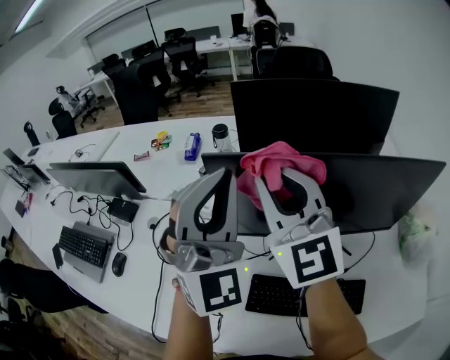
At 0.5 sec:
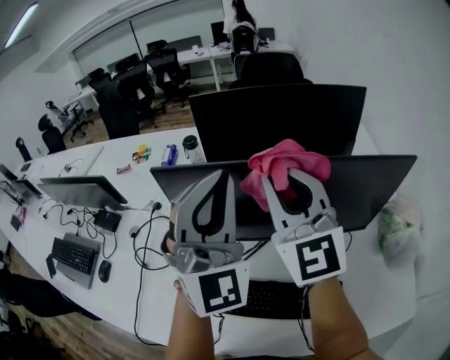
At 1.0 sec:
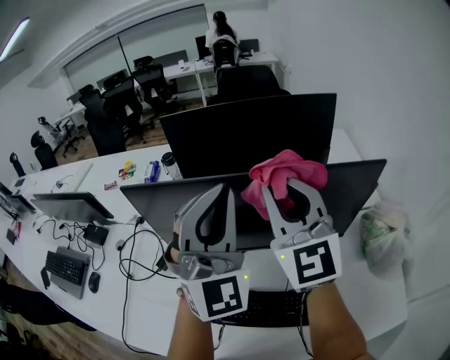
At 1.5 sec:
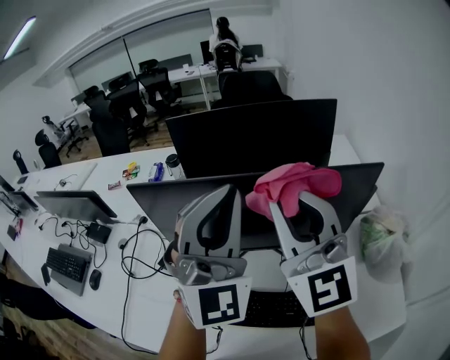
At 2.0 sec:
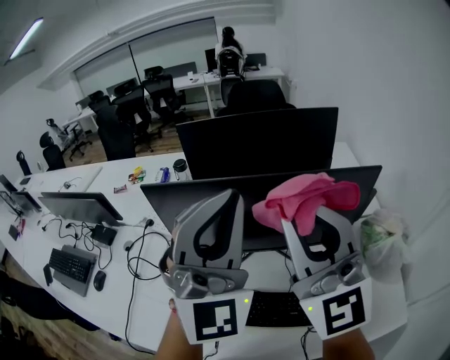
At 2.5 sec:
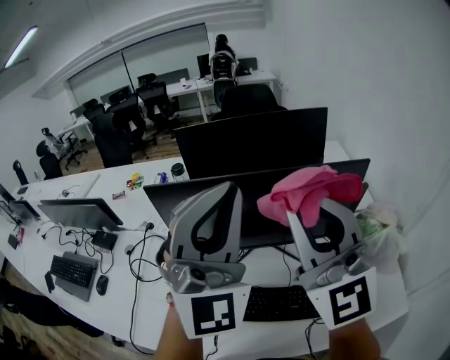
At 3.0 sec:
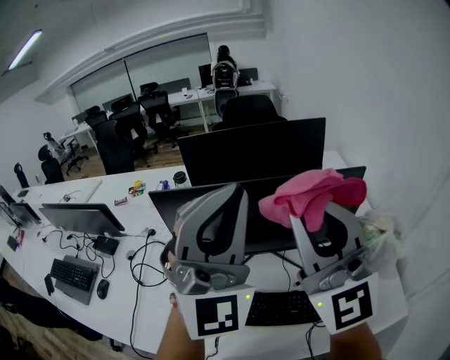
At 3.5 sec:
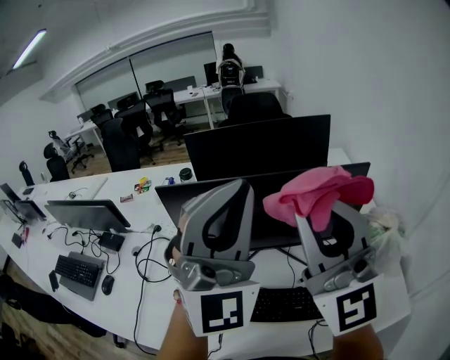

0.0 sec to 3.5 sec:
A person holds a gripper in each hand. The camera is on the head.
0.0 sec to 2.0 sec: The grippers both shift to the right, backward and upward by about 25 cm.
2.0 sec to 3.5 sec: The grippers both shift backward by some 5 cm.

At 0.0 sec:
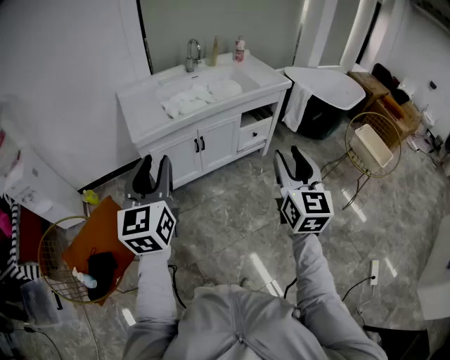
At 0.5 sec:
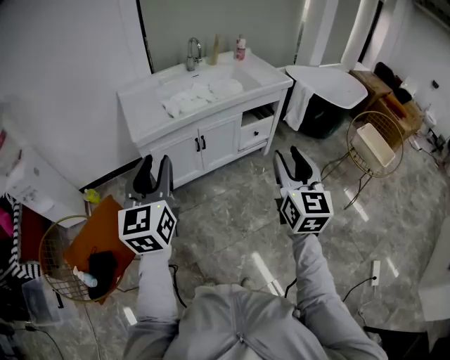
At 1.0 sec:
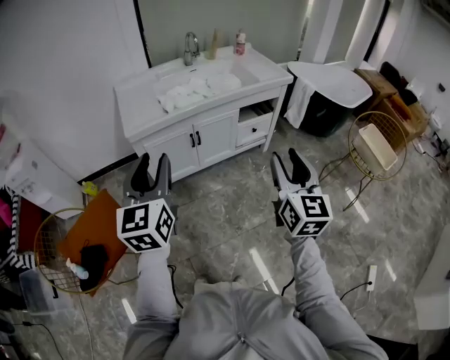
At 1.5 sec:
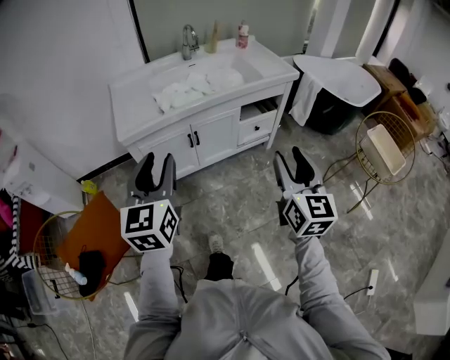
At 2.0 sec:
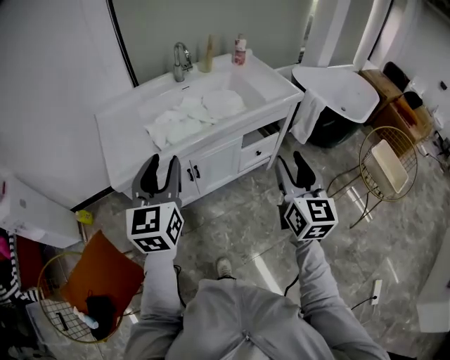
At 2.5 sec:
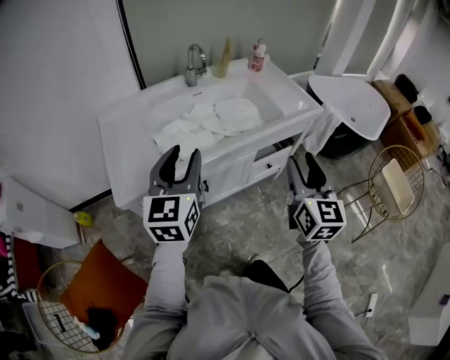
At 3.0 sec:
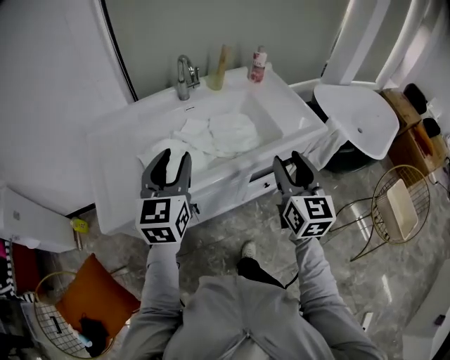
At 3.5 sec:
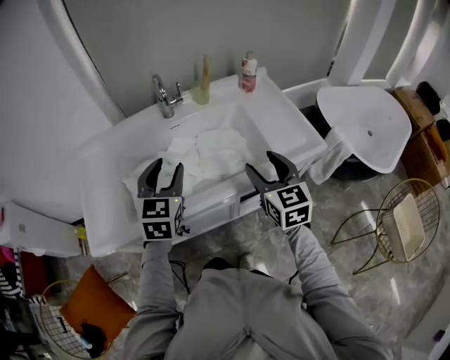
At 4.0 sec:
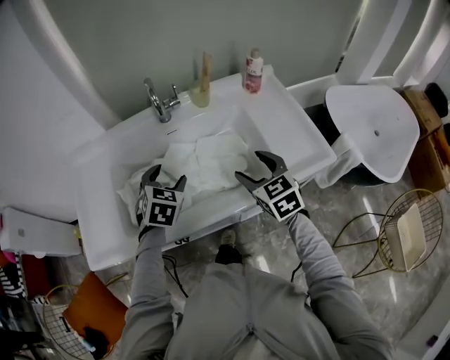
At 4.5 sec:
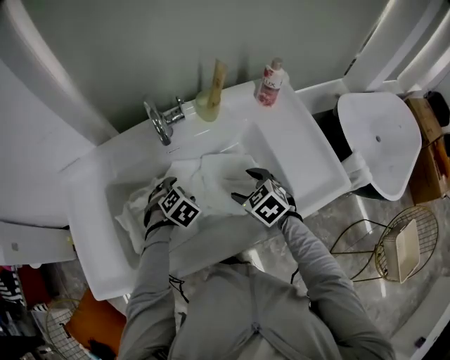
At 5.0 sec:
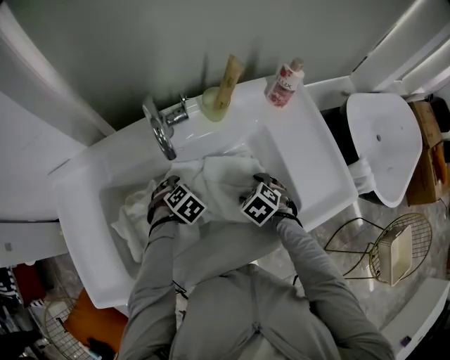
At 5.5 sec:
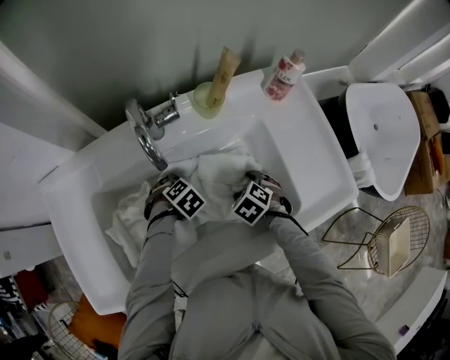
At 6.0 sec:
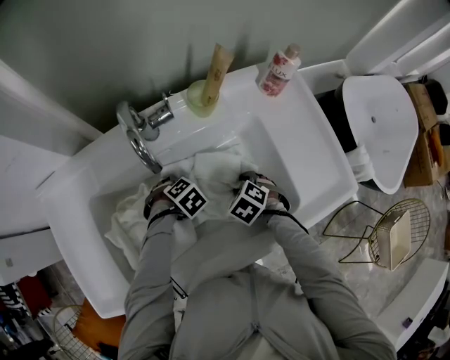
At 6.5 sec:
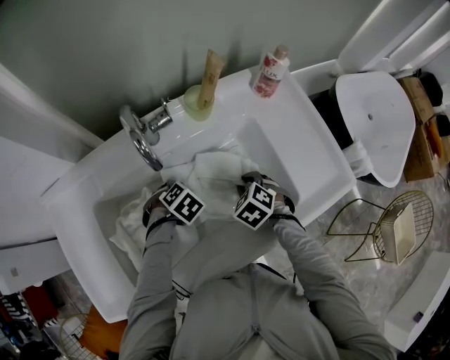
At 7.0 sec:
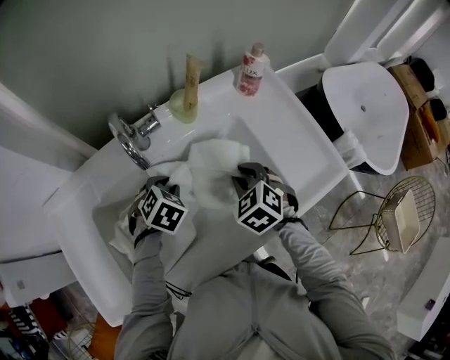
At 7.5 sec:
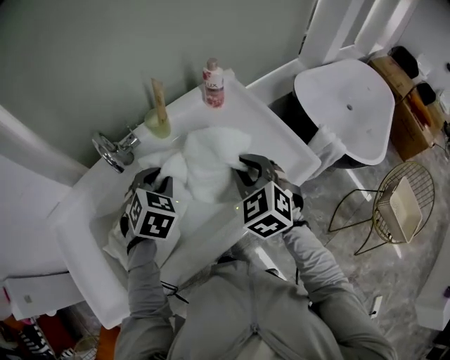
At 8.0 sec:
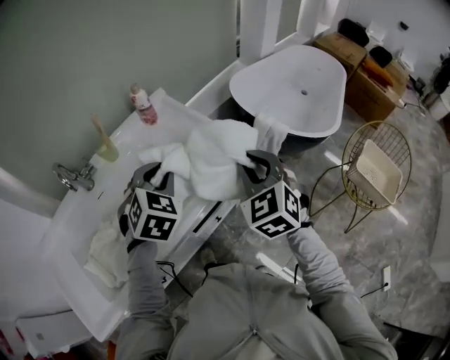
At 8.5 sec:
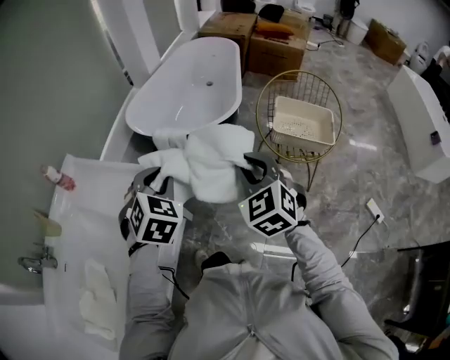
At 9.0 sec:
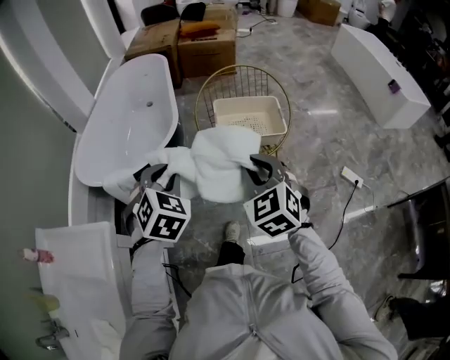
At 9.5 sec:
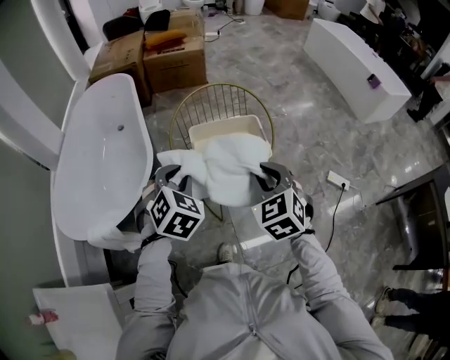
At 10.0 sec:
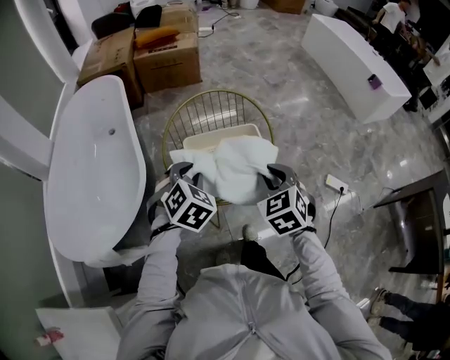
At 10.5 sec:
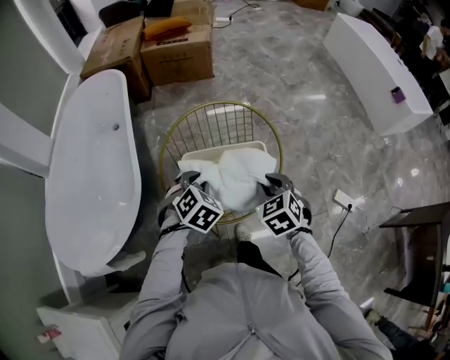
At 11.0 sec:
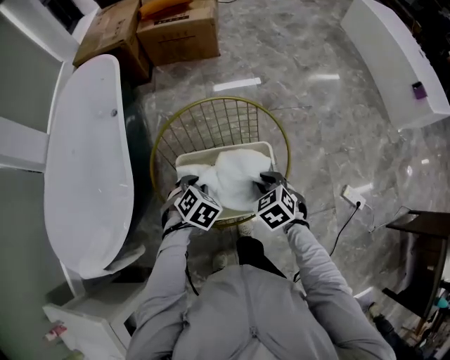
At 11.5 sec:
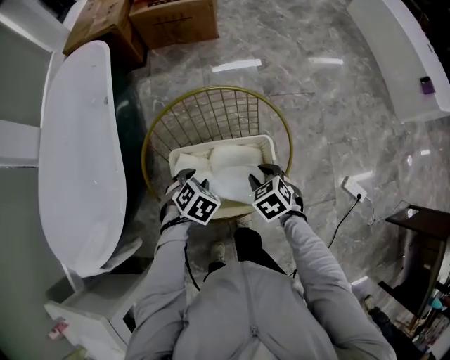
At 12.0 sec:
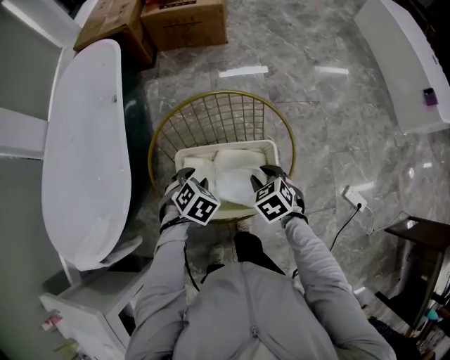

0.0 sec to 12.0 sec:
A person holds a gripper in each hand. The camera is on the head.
0.0 sec to 2.0 sec: The grippers both shift forward by roughly 25 cm.
2.0 sec to 4.0 sec: The two grippers travel together, forward, roughly 40 cm. The right gripper swivels roughly 40 degrees, and opens, while the left gripper heads downward, covering some 20 cm, tilts its fingers approximately 40 degrees downward, and opens up.
4.0 sec to 6.0 sec: The grippers both shift downward by about 20 cm. The left gripper tips its fingers downward by approximately 40 degrees. The right gripper angles its fingers downward, by roughly 50 degrees, and closes.
6.0 sec to 8.0 sec: The right gripper moves approximately 40 cm, and points its fingers about 50 degrees further upward; the left gripper is displaced upward by about 35 cm, and angles its fingers upward, by roughly 50 degrees.
8.0 sec to 10.0 sec: Both grippers are carried some 80 cm. The left gripper swivels approximately 70 degrees, while the right gripper rotates about 70 degrees.
10.0 sec to 12.0 sec: Both grippers move downward and forward, roughly 25 cm. The right gripper swivels about 30 degrees. The left gripper turns by approximately 30 degrees.

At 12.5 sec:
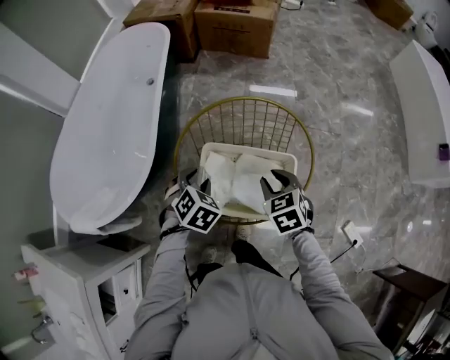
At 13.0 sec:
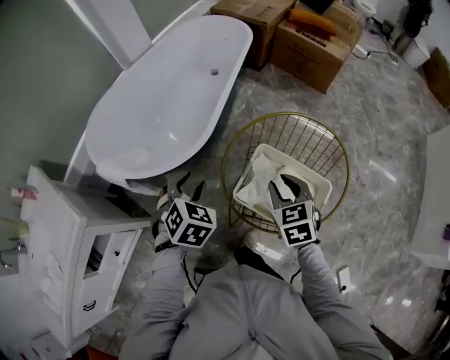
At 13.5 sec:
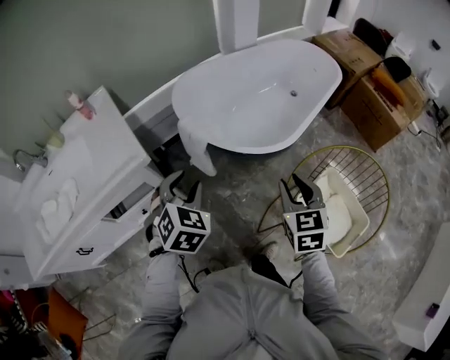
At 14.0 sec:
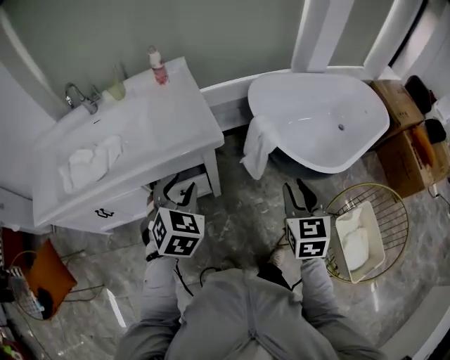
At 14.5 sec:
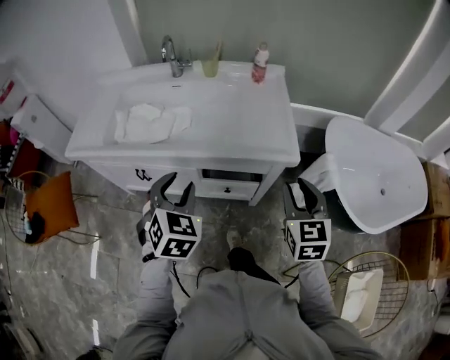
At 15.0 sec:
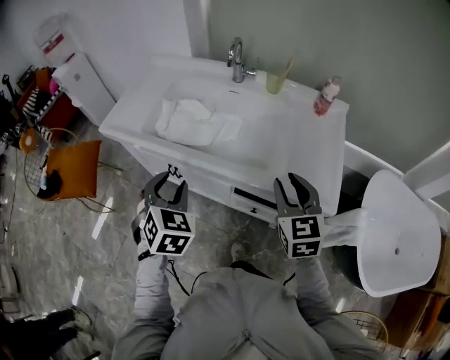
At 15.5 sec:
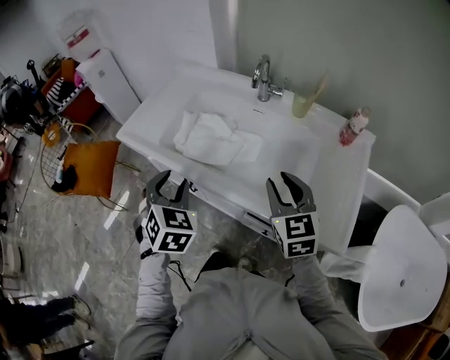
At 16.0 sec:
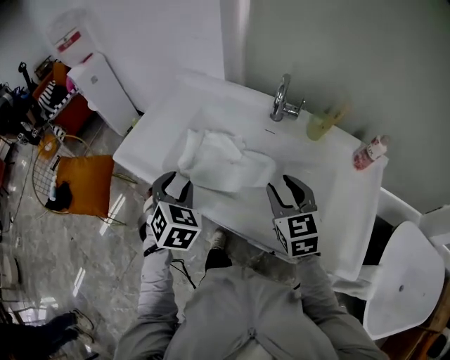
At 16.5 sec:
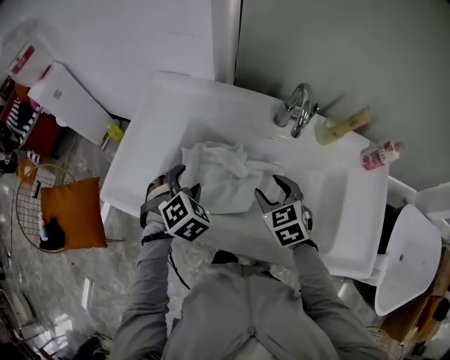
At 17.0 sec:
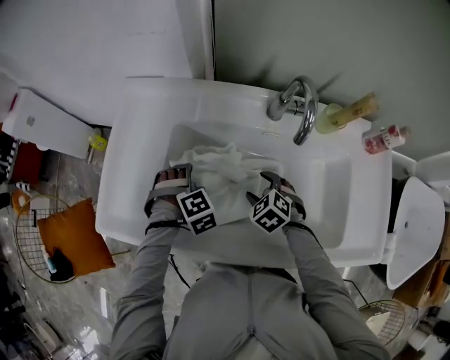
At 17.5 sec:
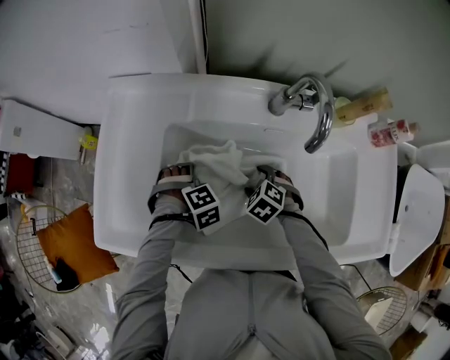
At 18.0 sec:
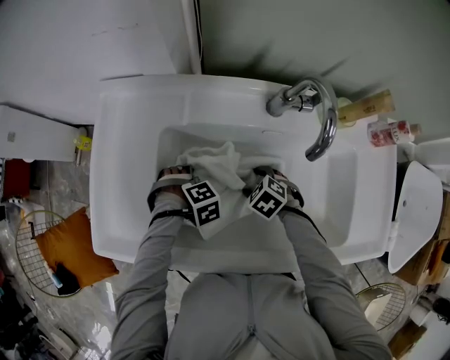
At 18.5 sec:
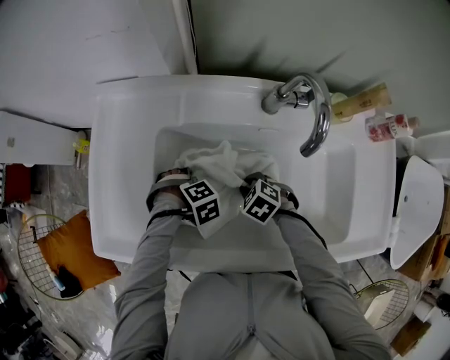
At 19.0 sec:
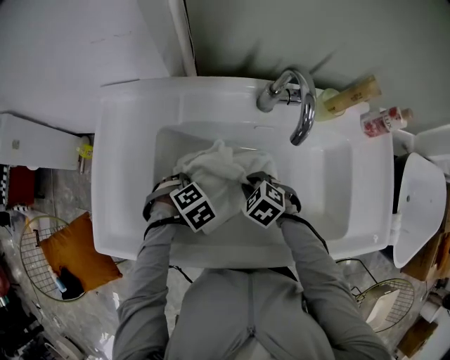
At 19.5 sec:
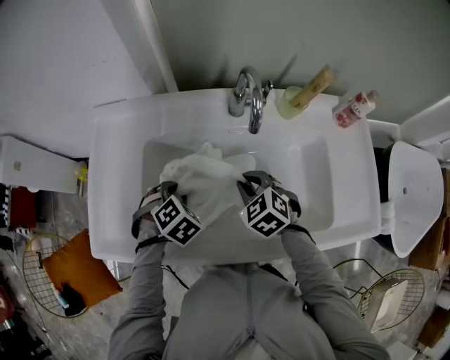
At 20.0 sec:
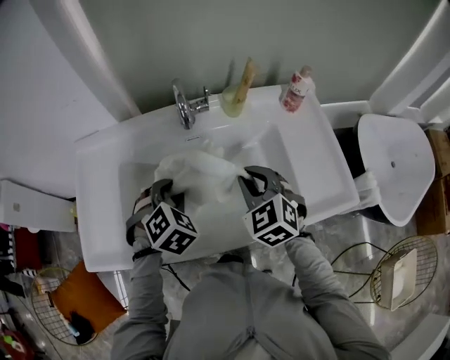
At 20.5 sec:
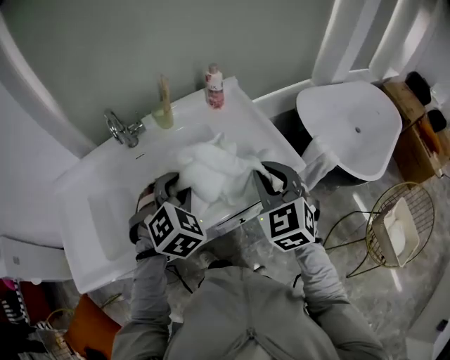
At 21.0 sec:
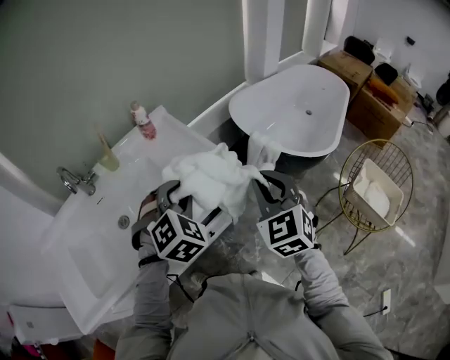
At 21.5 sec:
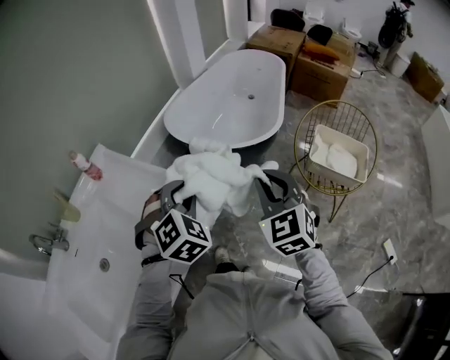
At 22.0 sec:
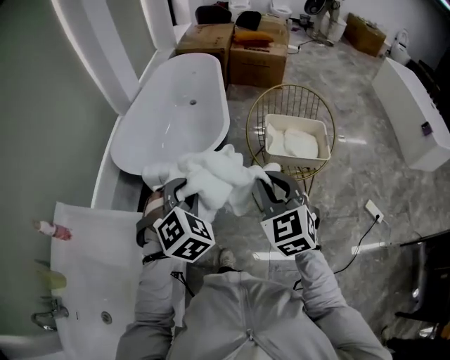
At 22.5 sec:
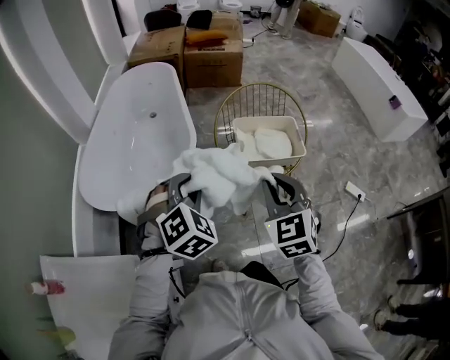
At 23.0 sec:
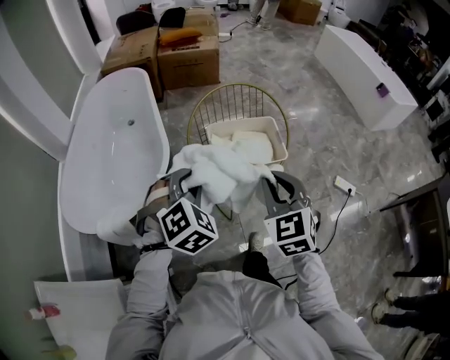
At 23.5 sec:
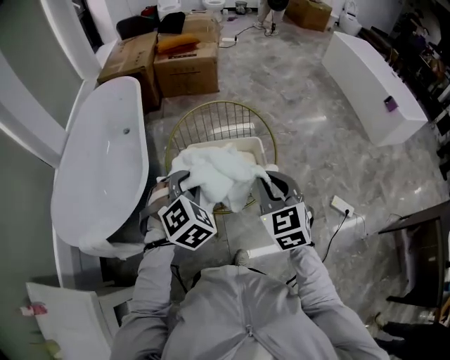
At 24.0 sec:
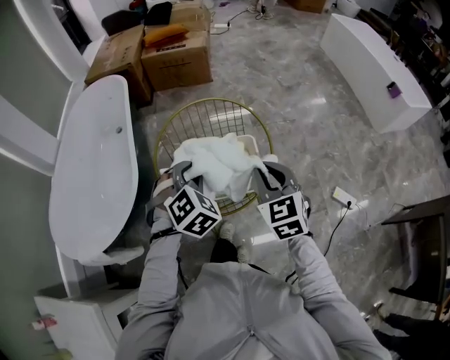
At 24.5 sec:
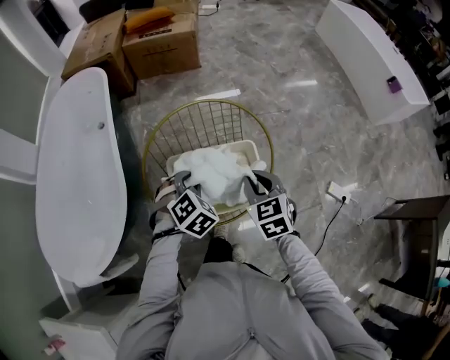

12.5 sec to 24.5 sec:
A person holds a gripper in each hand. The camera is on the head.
12.5 sec to 14.5 sec: The pair of grippers is taken some 80 cm. The right gripper changes its angle by about 80 degrees; the left gripper swivels about 100 degrees.
14.5 sec to 16.5 sec: The two grippers travel together, approximately 50 cm. The right gripper turns by roughly 40 degrees, while the left gripper rotates roughly 20 degrees.
16.5 sec to 18.5 sec: The two grippers go approximately 20 cm downward. The left gripper tips its fingers downward by some 30 degrees. Meanwhile the right gripper swivels approximately 30 degrees, and closes its fingers.
18.5 sec to 20.5 sec: The left gripper moves approximately 50 cm, angles its fingers upward, by roughly 40 degrees, and closes up, while the right gripper shifts by approximately 50 cm, and angles its fingers upward, by roughly 50 degrees.
20.5 sec to 22.5 sec: Both grippers are carried some 60 cm. The right gripper changes its angle by roughly 80 degrees. The left gripper rotates some 80 degrees.
22.5 sec to 24.5 sec: Both grippers move forward, to the right and downward, about 40 cm. The right gripper swivels about 20 degrees.
